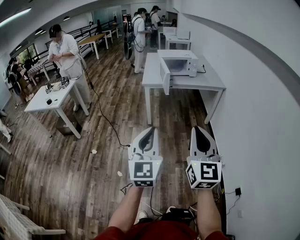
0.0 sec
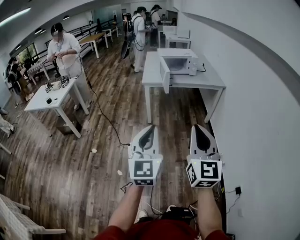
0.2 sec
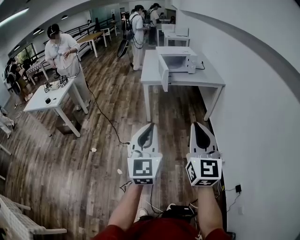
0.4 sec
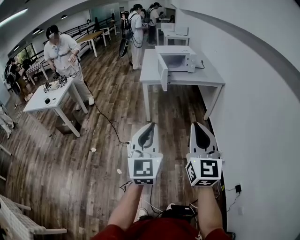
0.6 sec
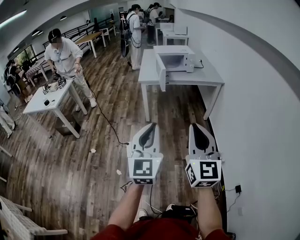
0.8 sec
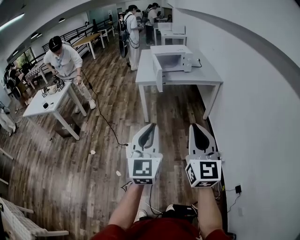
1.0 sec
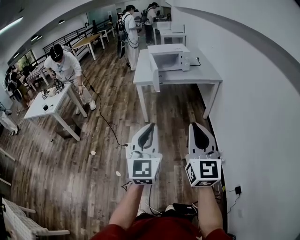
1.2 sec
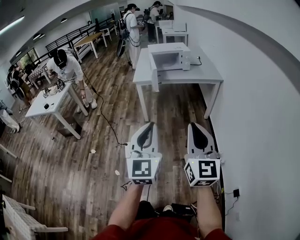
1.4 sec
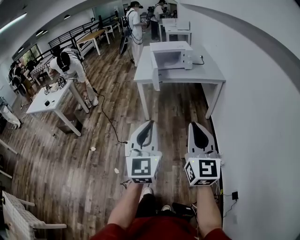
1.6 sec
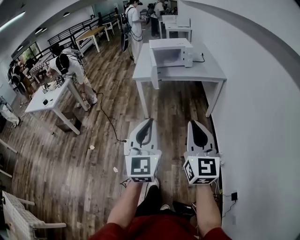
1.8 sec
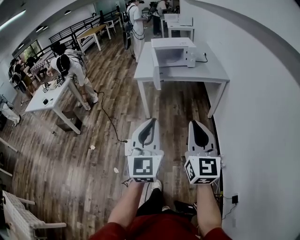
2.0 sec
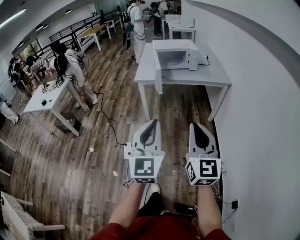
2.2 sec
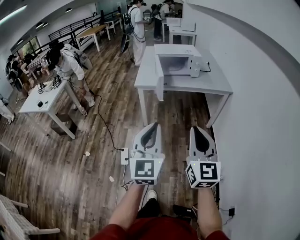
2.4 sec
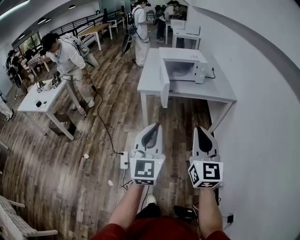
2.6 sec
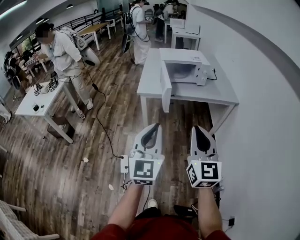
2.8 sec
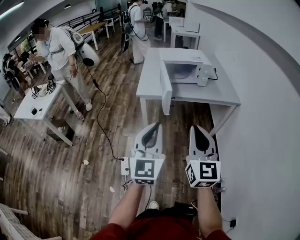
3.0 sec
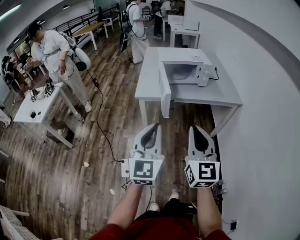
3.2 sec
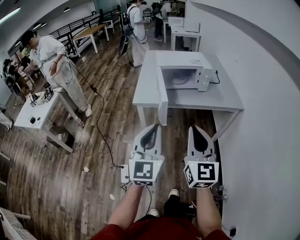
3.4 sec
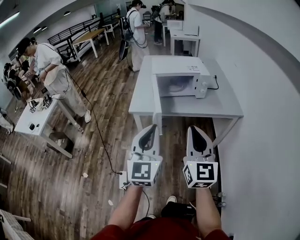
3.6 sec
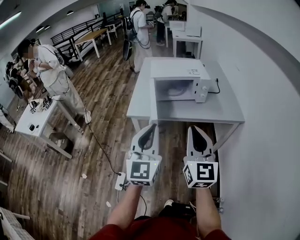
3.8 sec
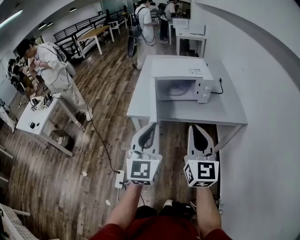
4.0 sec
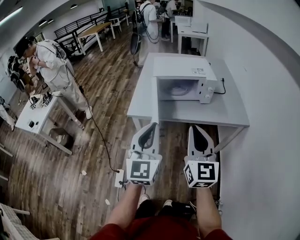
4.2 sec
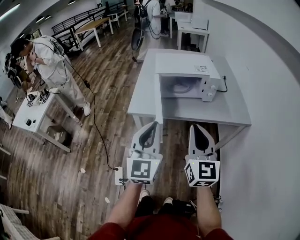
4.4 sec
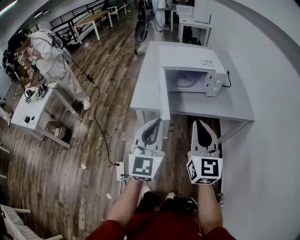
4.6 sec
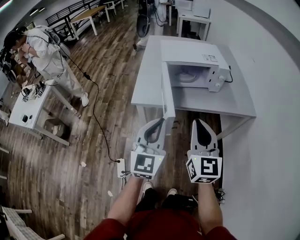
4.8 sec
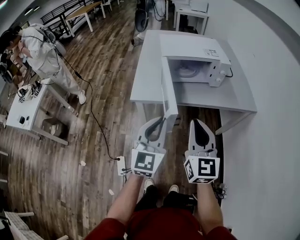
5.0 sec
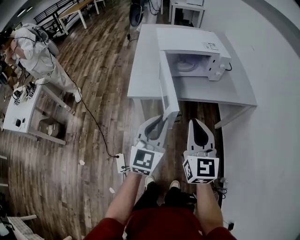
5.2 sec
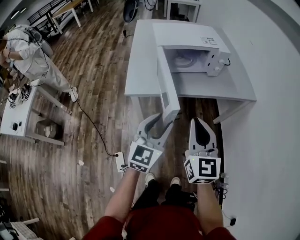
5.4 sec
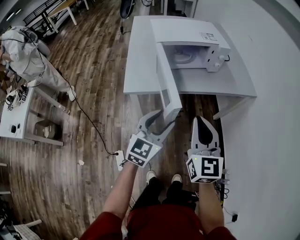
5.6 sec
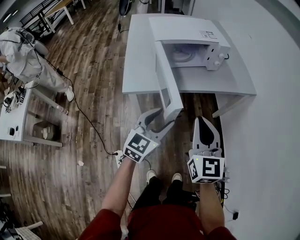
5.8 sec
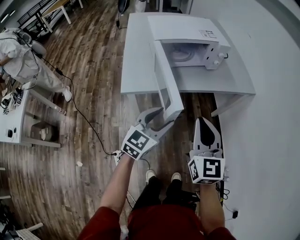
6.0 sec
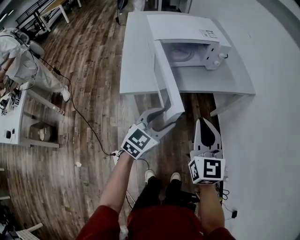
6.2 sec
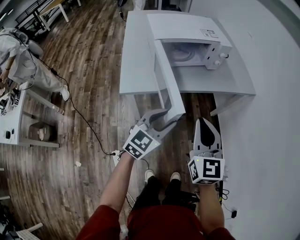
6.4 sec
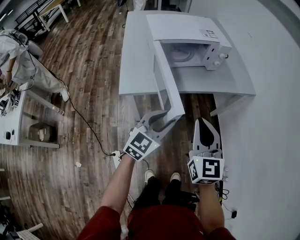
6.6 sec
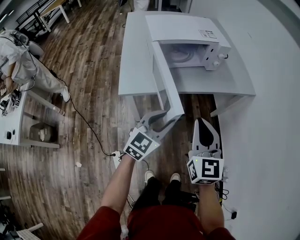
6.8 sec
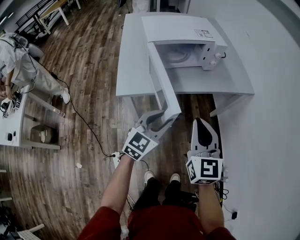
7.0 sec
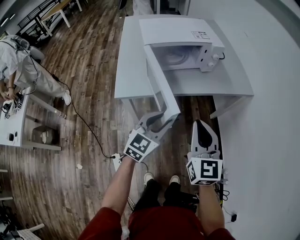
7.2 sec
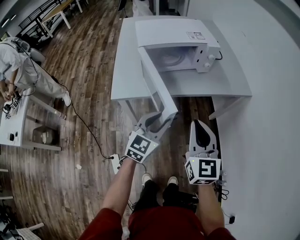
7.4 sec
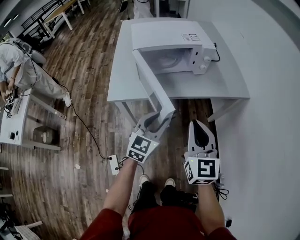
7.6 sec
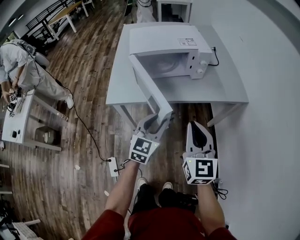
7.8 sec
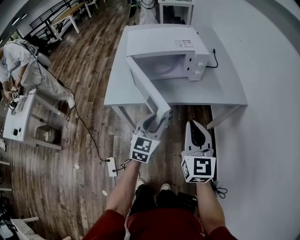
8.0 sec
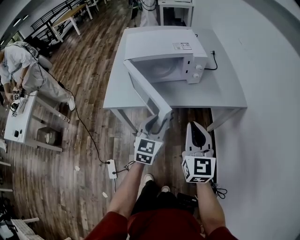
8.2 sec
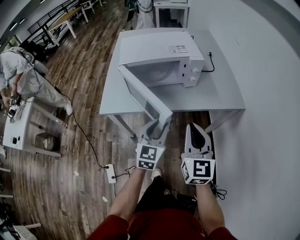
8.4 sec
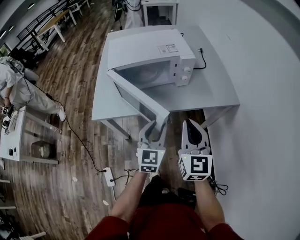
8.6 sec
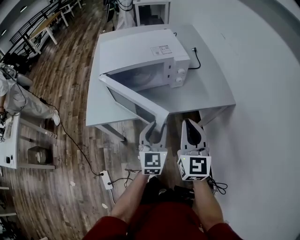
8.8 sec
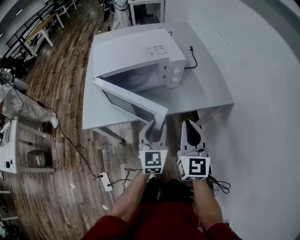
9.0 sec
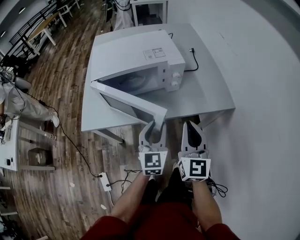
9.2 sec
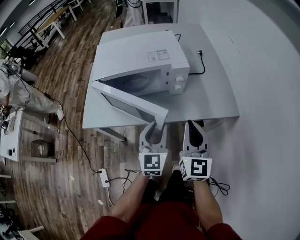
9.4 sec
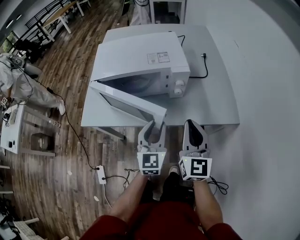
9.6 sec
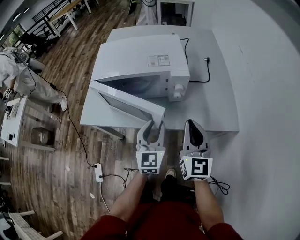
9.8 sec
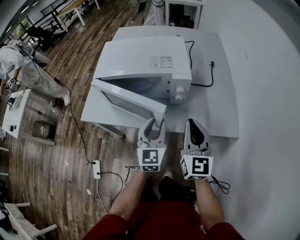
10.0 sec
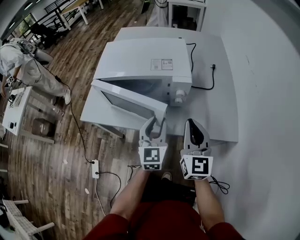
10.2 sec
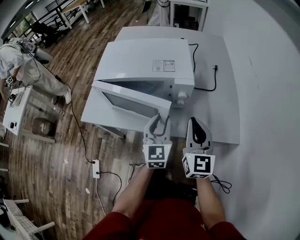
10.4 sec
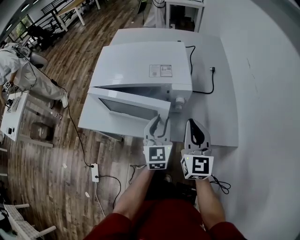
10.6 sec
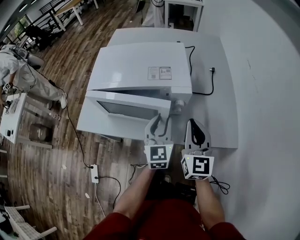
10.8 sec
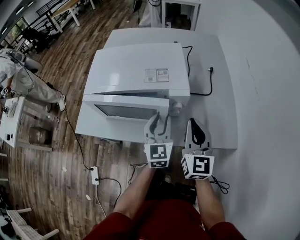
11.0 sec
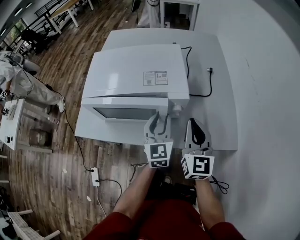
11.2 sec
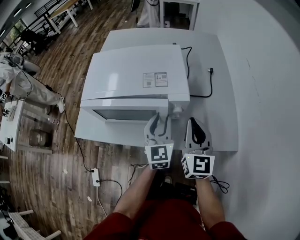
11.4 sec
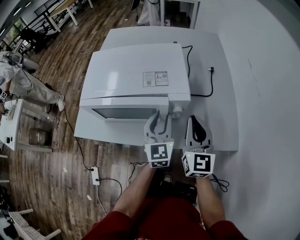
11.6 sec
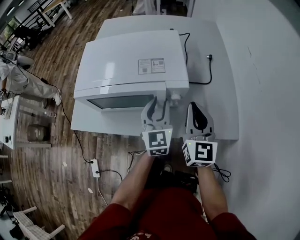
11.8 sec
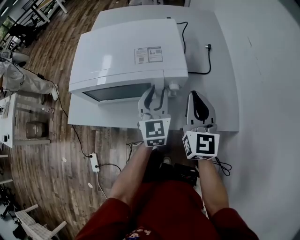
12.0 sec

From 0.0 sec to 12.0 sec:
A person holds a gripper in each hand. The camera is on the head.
From 0.0 sec to 1.6 sec: The grippers both shift to the right and forward by roughly 15 cm.
From 1.6 sec to 3.0 sec: Both grippers travel together forward, approximately 30 cm.
From 3.0 sec to 4.4 sec: The two grippers go about 25 cm forward.
From 4.4 sec to 6.0 sec: The left gripper is displaced downward by approximately 20 cm, swivels approximately 50 degrees, and opens. Meanwhile the right gripper travels downward by some 10 cm.
From 6.0 sec to 7.6 sec: Both grippers move to the right and forward, approximately 10 cm.
From 7.6 sec to 9.0 sec: The two grippers go some 15 cm forward and to the right.
From 9.0 sec to 10.4 sec: Both grippers travel together forward and to the right, some 15 cm.
From 10.4 sec to 12.0 sec: The grippers both shift forward by about 10 cm.

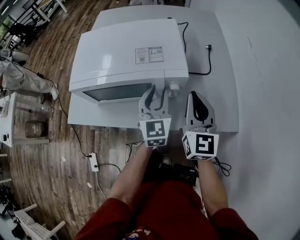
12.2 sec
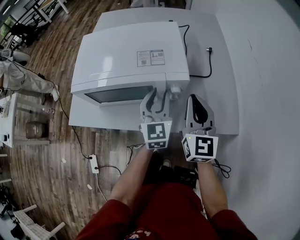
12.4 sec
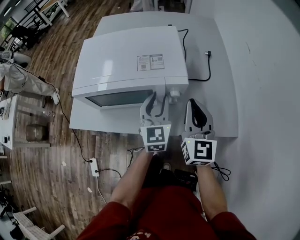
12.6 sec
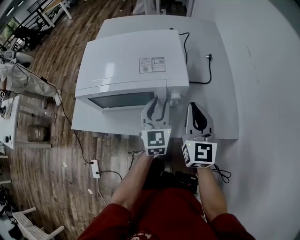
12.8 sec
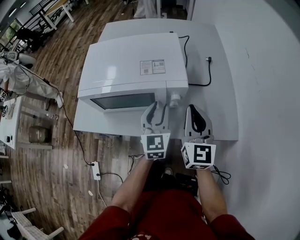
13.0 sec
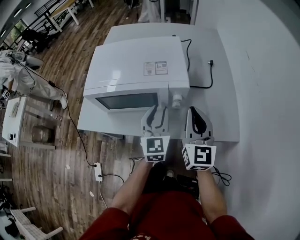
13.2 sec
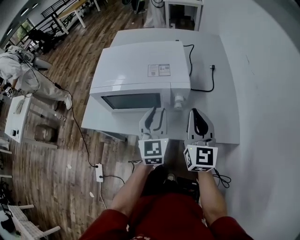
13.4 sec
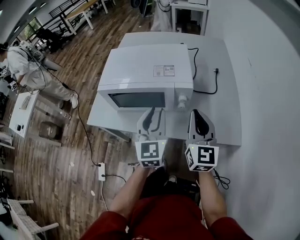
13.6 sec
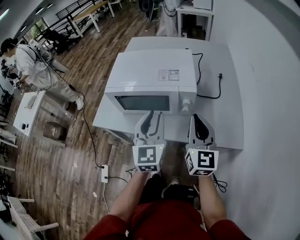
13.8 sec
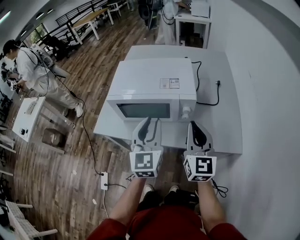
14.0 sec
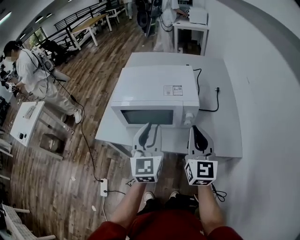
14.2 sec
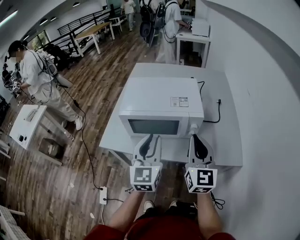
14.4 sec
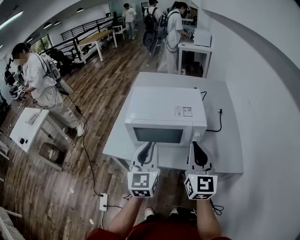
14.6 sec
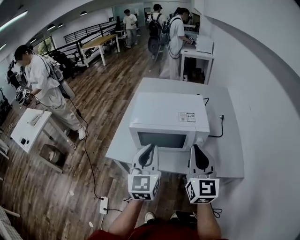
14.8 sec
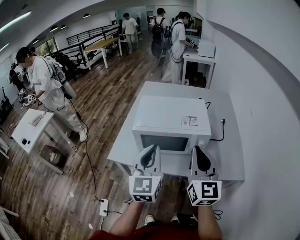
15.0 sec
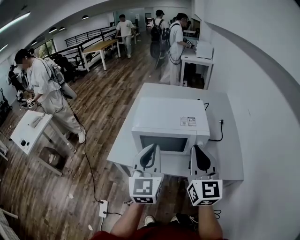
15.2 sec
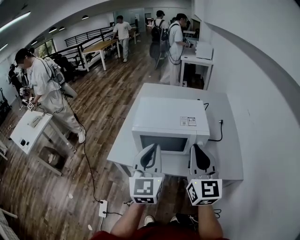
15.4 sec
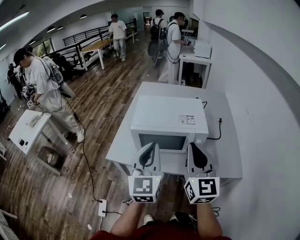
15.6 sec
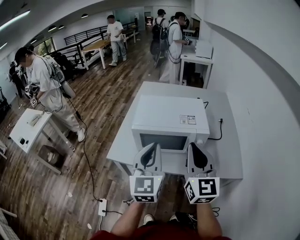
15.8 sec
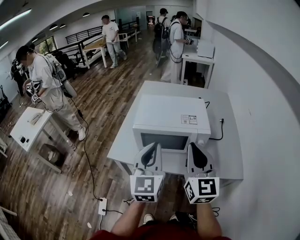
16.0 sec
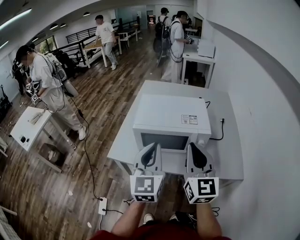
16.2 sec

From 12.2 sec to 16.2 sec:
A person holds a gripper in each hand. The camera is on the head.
From 12.2 sec to 13.6 sec: The right gripper travels backward by approximately 5 cm. The left gripper travels backward and upward by approximately 15 cm.
From 13.6 sec to 14.8 sec: Both grippers travel together to the left and upward, approximately 15 cm.
From 14.8 sec to 16.2 sec: The grippers move only a little.

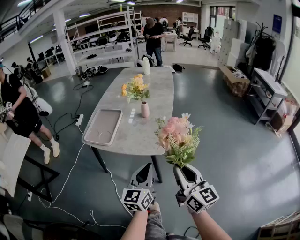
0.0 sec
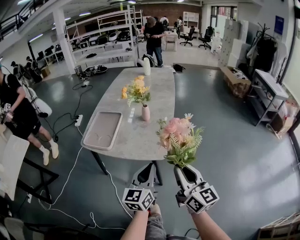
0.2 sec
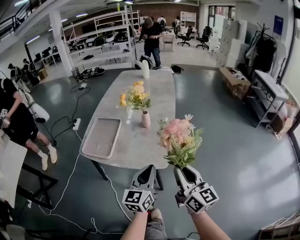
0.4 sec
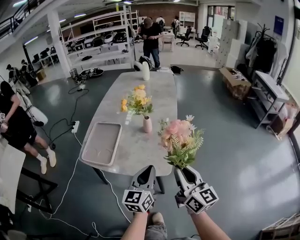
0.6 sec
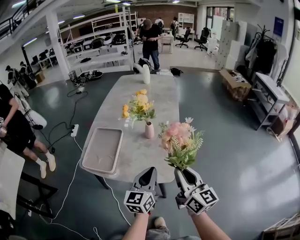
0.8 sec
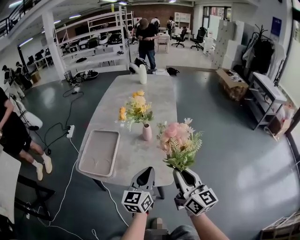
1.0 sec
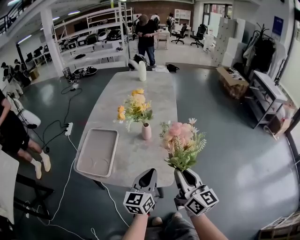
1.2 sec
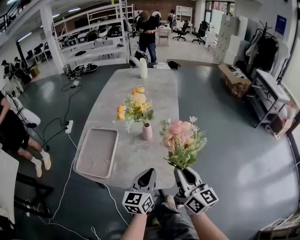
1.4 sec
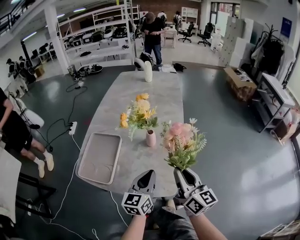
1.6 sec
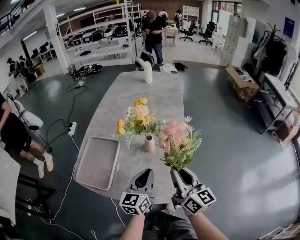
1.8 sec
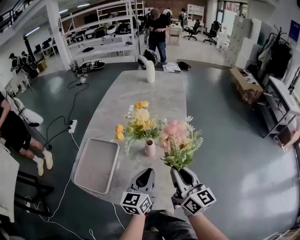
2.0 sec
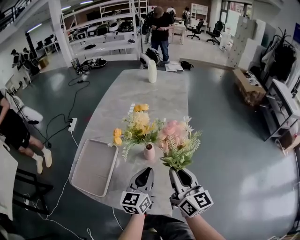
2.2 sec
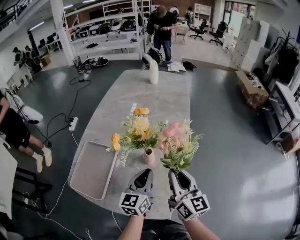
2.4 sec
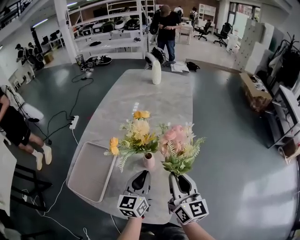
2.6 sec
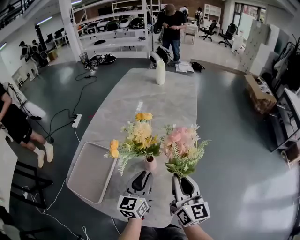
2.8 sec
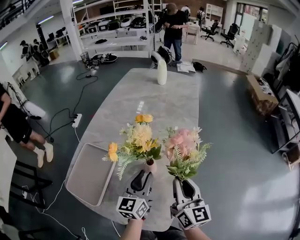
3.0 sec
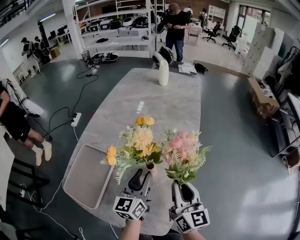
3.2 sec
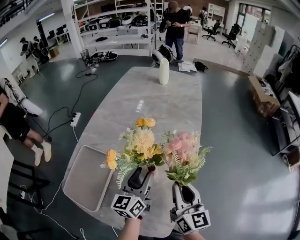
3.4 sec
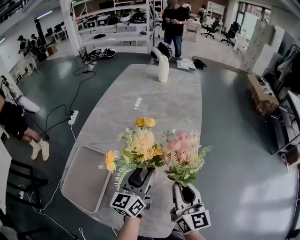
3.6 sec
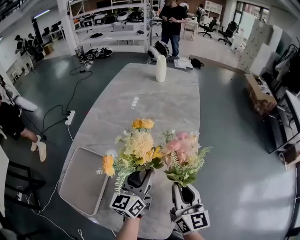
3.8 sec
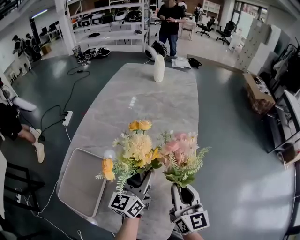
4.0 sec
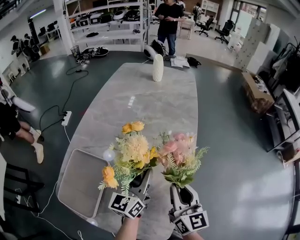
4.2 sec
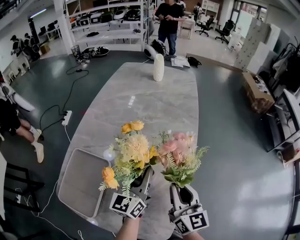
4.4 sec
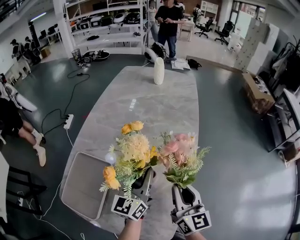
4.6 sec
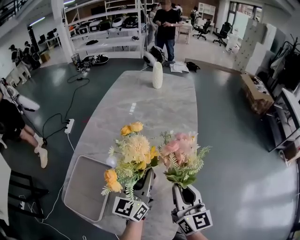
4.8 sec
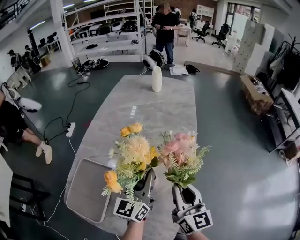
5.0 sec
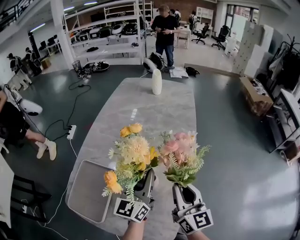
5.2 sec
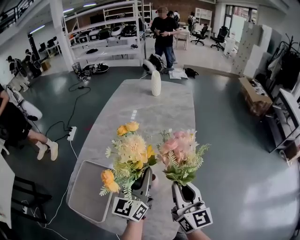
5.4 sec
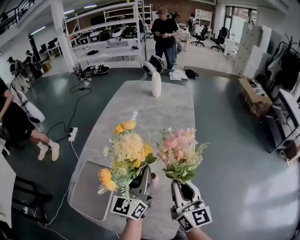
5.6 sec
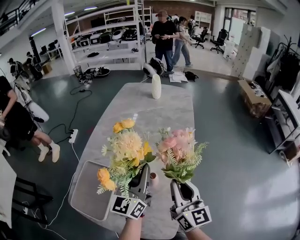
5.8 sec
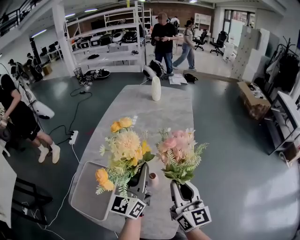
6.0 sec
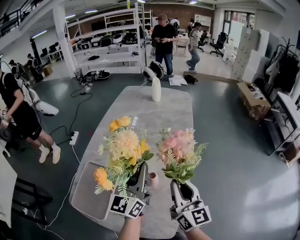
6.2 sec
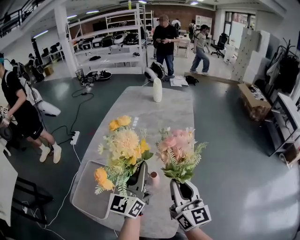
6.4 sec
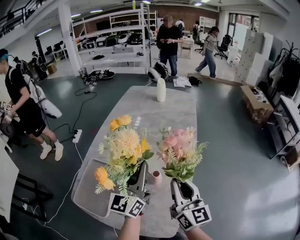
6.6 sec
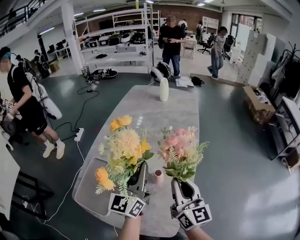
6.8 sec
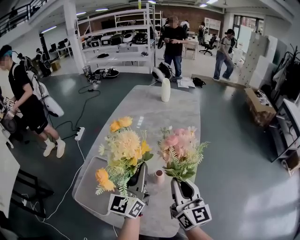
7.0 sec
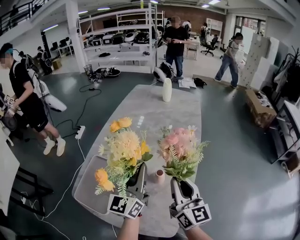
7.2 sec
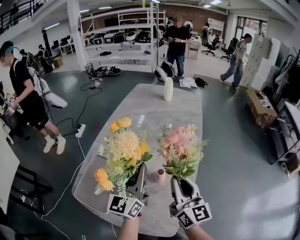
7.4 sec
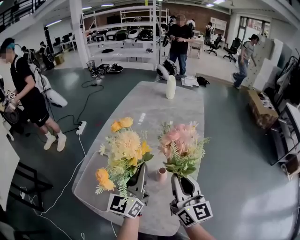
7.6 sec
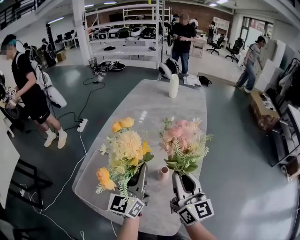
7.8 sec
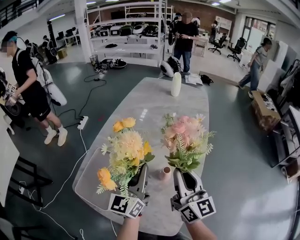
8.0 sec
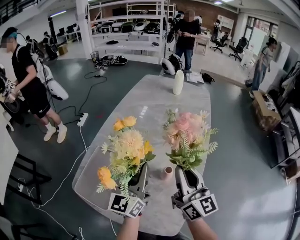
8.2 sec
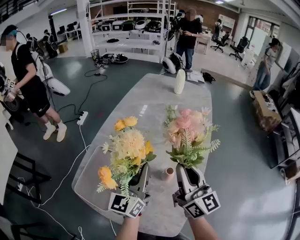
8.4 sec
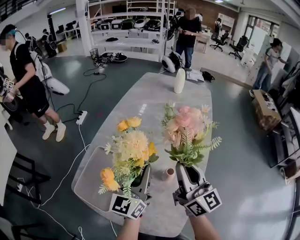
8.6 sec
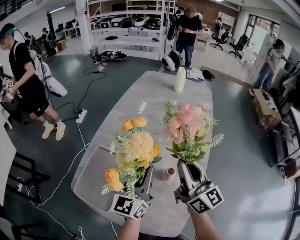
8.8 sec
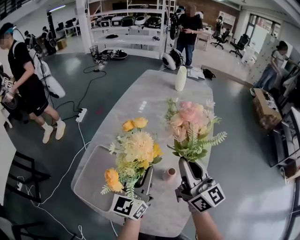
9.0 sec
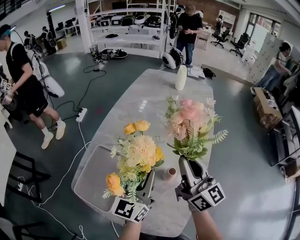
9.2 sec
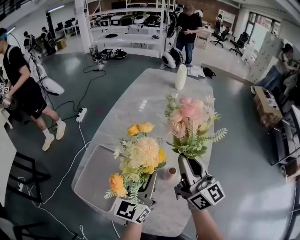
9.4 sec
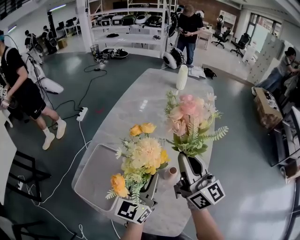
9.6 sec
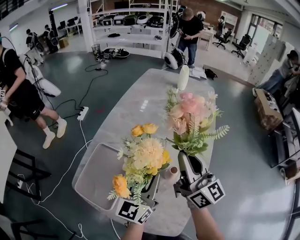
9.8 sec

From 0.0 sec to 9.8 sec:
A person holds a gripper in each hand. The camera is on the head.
From 0.0 sec to 1.4 sec: The grippers both shift forward by roughly 20 cm.
From 1.4 sec to 2.8 sec: Both grippers move forward, roughly 20 cm.
From 2.8 sec to 4.2 sec: The left gripper travels forward by roughly 10 cm. The right gripper travels forward by some 5 cm.
From 4.2 sec to 5.6 sec: Both grippers move upward, some 10 cm.
From 5.6 sec to 7.0 sec: The left gripper moves some 5 cm.
From 7.0 sec to 8.4 sec: The left gripper moves some 5 cm. Meanwhile the right gripper ends up approximately 5 cm from where it was.
From 8.4 sec to 9.8 sec: The right gripper shifts by some 5 cm.
